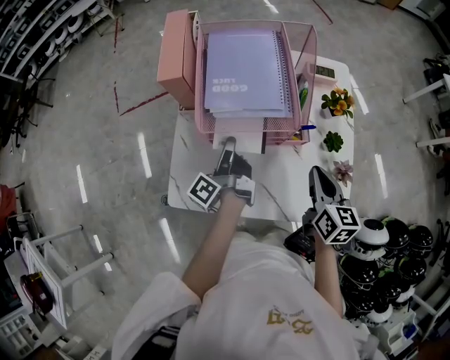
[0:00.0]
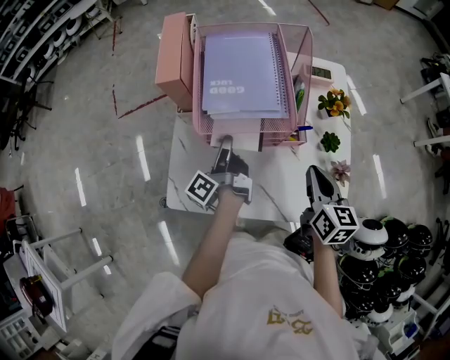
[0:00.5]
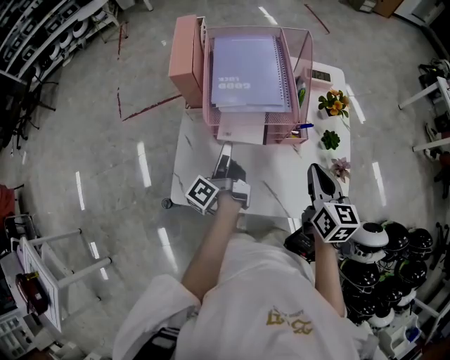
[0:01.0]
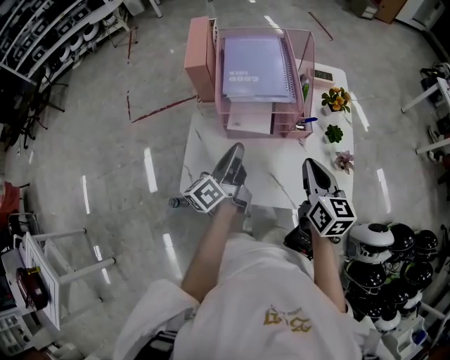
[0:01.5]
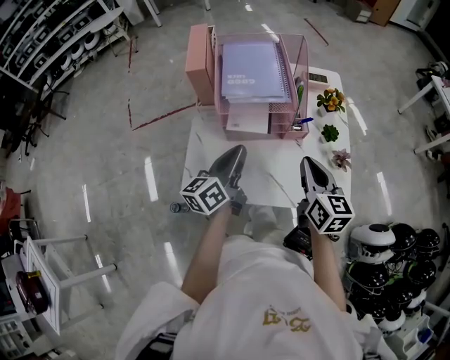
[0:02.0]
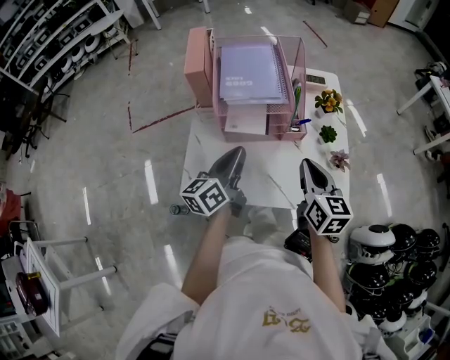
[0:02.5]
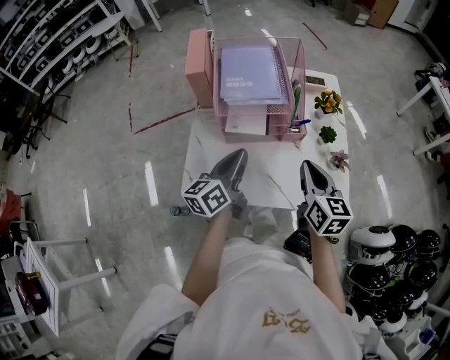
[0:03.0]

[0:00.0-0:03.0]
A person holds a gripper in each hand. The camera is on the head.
0:00.0 to 0:01.5: The right gripper moves roughly 10 cm.

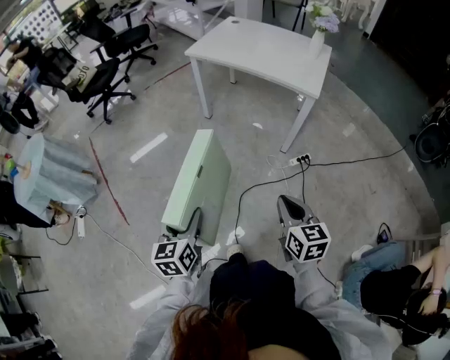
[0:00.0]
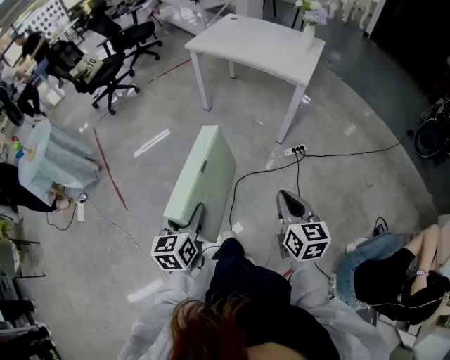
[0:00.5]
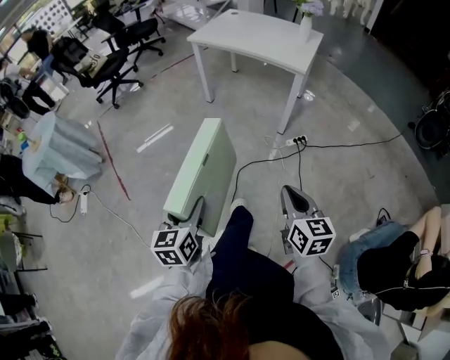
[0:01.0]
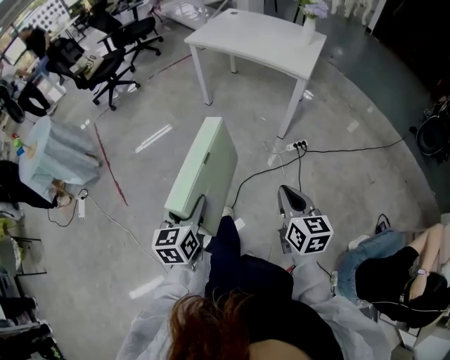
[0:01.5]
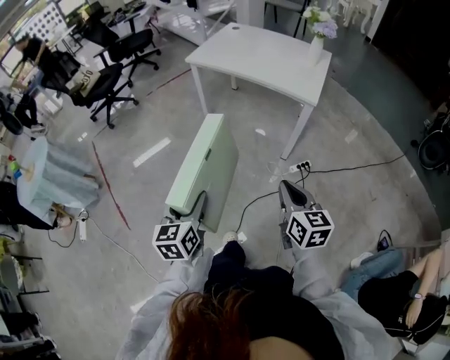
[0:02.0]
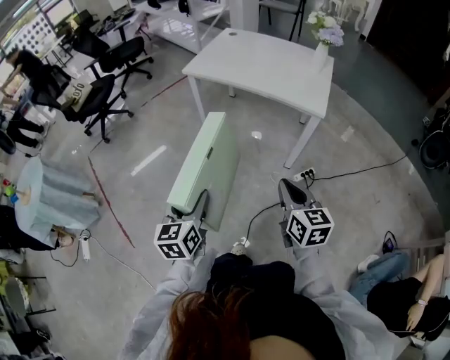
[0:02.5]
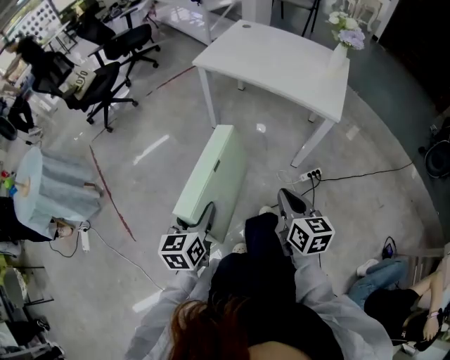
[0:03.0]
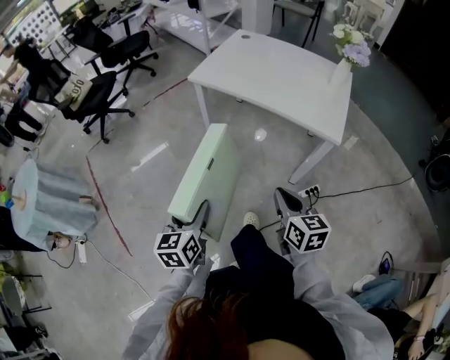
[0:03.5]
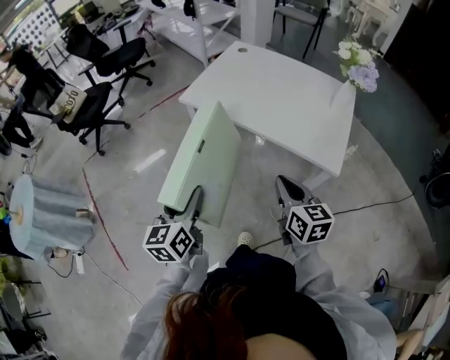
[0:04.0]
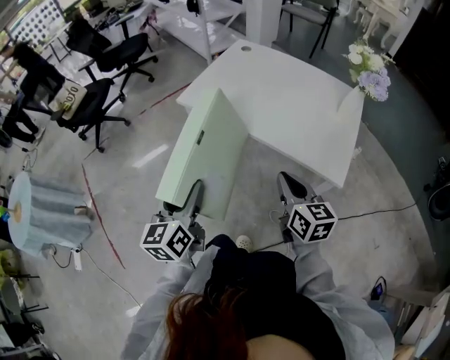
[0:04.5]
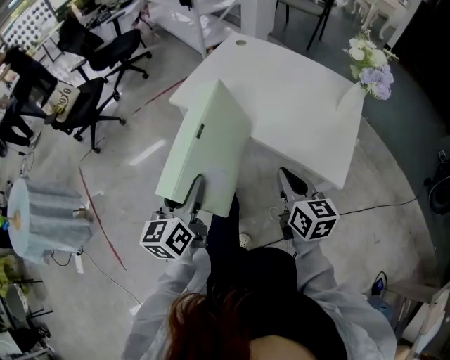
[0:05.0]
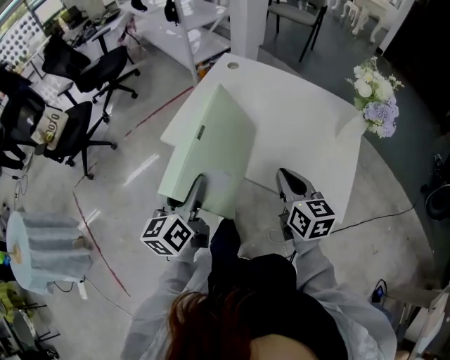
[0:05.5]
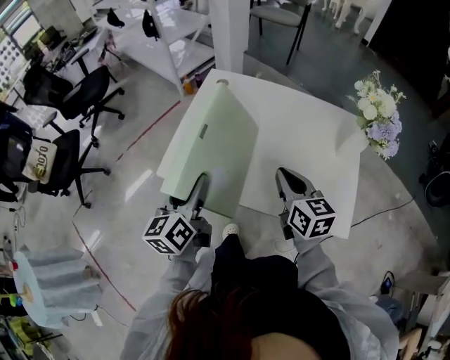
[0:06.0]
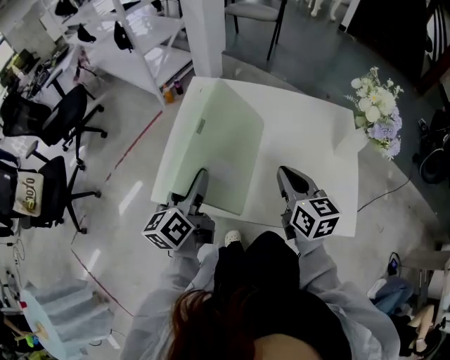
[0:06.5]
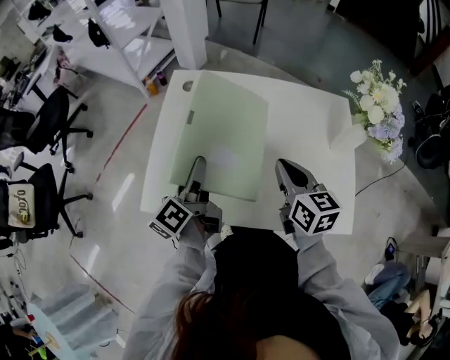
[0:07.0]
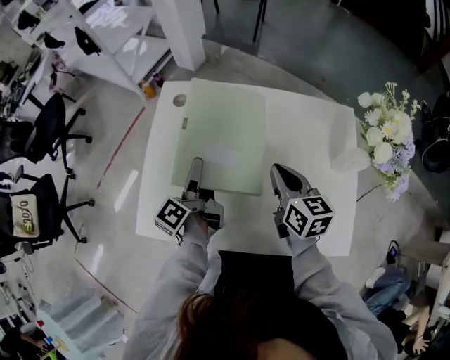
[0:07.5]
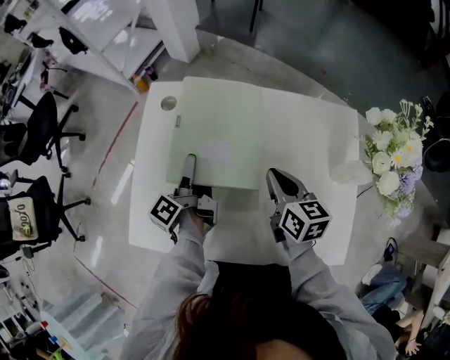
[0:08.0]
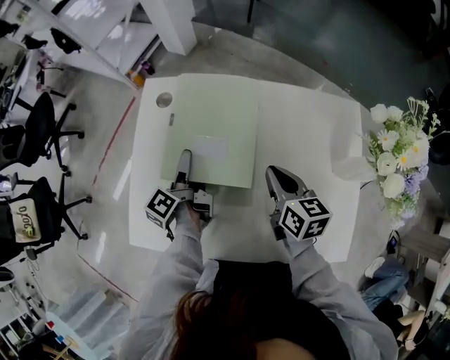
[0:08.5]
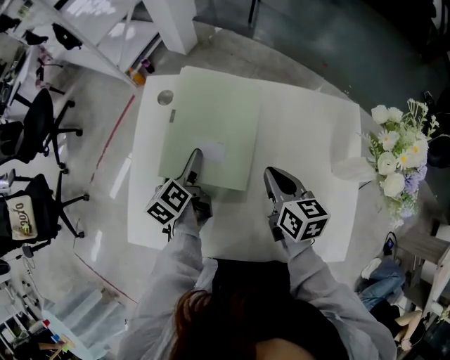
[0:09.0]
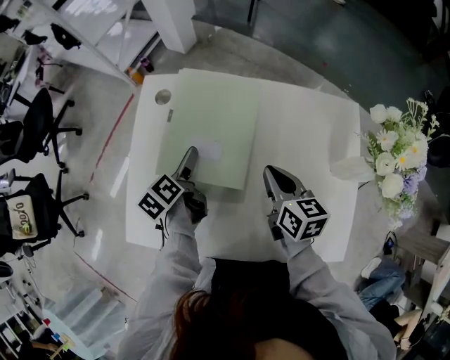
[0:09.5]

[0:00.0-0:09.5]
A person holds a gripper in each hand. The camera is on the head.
0:00.0 to 0:02.0: The right gripper reaches roughly 20 cm backward, then returns. The left gripper moves some 15 cm backward and comes back.
0:02.0 to 0:04.0: The pair of grippers is taken forward, roughly 40 cm.
0:04.0 to 0:05.5: The grippers both shift forward by approximately 25 cm.
0:05.5 to 0:07.5: Both grippers move forward, roughly 35 cm. The left gripper twists roughly 40 degrees counterclockwise, seen from behind.
0:07.5 to 0:09.5: The right gripper goes about 5 cm downward, while the left gripper heads downward and forward, covering roughly 10 cm, tilts its fingers approximately 30 degrees downward, and opens.

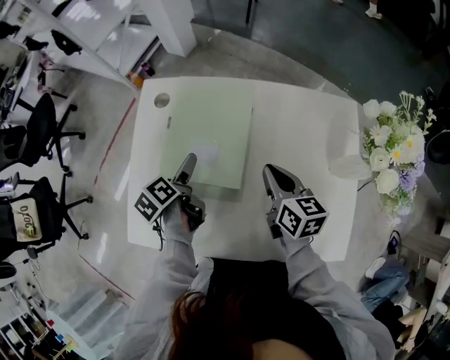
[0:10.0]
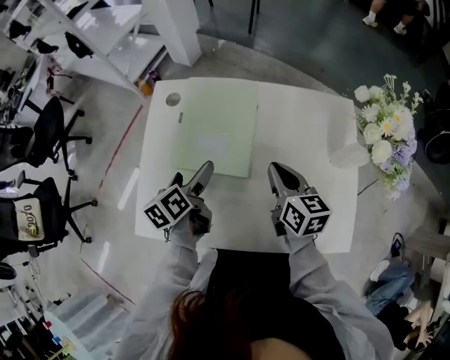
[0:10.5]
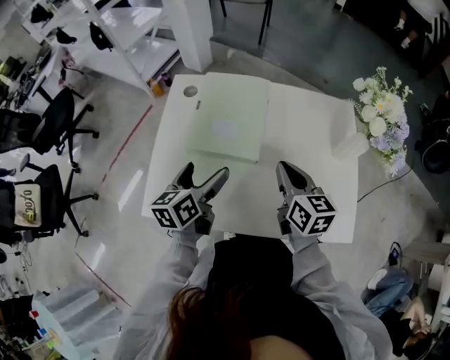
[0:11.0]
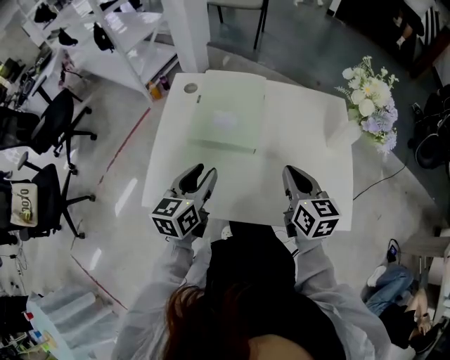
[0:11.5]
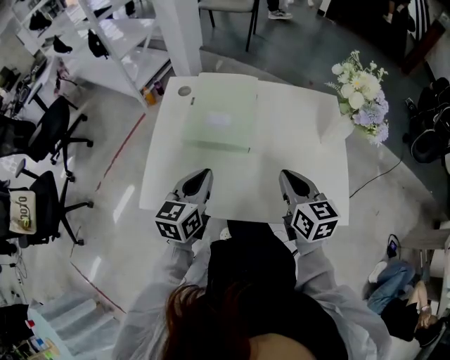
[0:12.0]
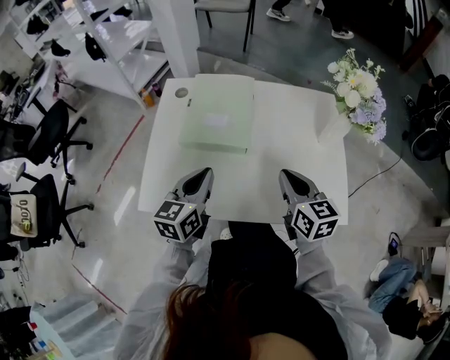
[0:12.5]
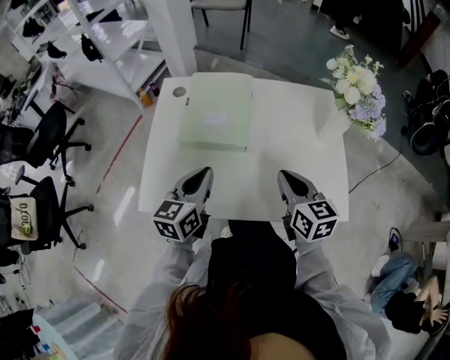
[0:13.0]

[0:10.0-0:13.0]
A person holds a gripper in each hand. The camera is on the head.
0:10.0 to 0:11.5: Both grippers move backward and upward, approximately 20 cm. The left gripper twists approximately 40 degrees clockwise, seen from behind, and closes.
0:11.5 to 0:13.0: There are only small adjustments of the grippers.

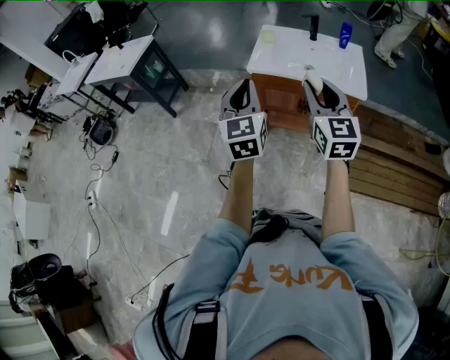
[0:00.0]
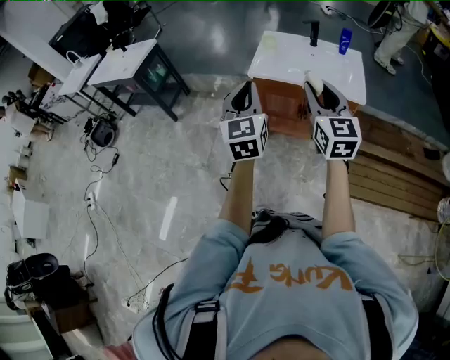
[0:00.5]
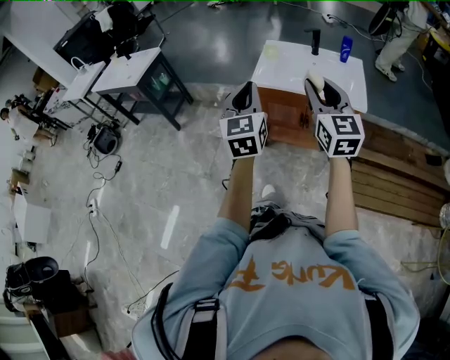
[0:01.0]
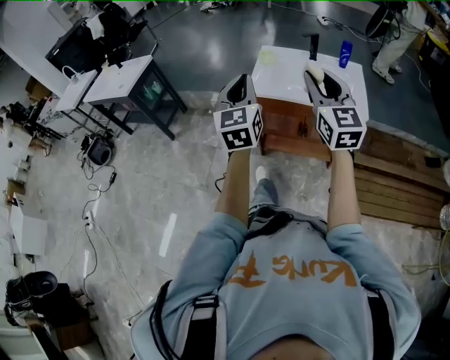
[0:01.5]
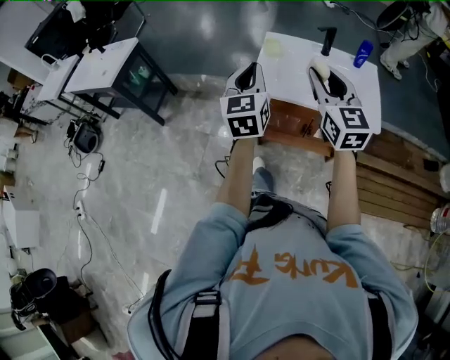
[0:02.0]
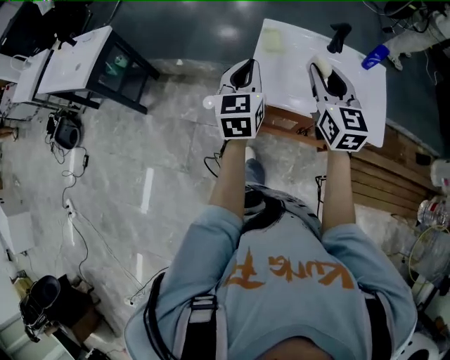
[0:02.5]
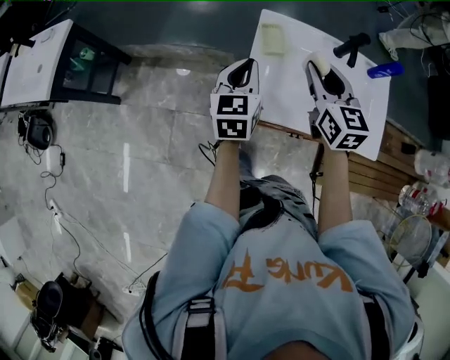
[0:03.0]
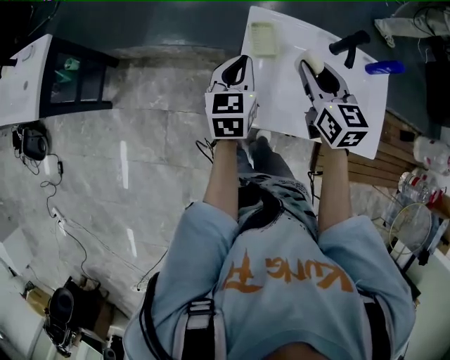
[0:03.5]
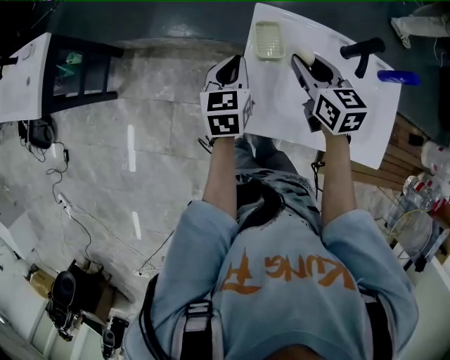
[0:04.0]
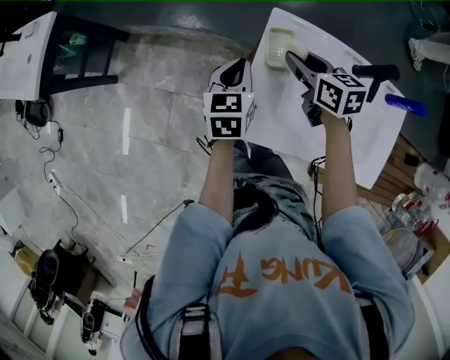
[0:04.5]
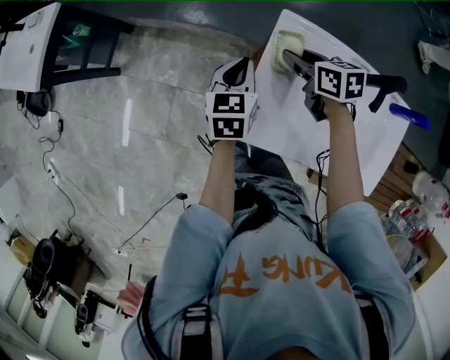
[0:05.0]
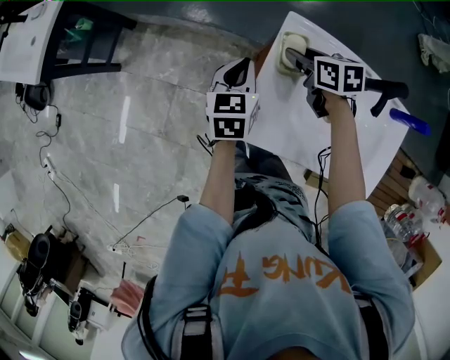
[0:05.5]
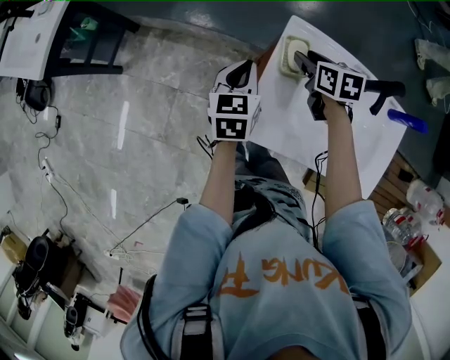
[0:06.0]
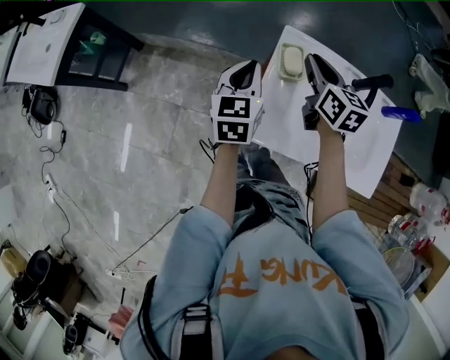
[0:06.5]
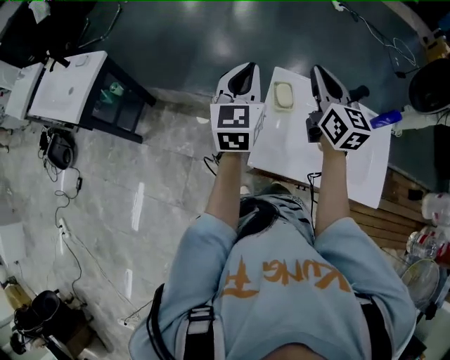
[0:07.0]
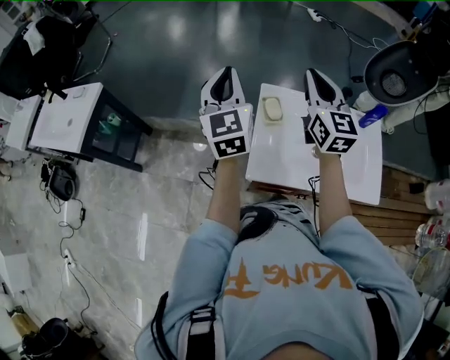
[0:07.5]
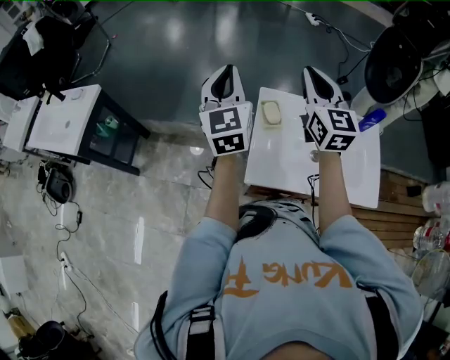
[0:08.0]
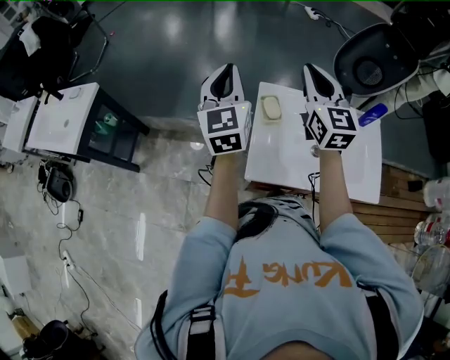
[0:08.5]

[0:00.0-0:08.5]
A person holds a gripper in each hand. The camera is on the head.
0:00.0 to 0:02.0: The grippers both shift forward by about 25 cm.
0:02.0 to 0:04.0: The grippers both shift forward and downward by roughly 40 cm. The right gripper turns by some 40 degrees. Meanwhile the left gripper changes its angle by about 30 degrees.
0:04.0 to 0:06.5: The left gripper moves about 5 cm. Meanwhile the right gripper goes downward and returns, approximately 10 cm each way.
0:06.5 to 0:08.5: Both grippers travel together upward, about 20 cm. The right gripper swivels some 40 degrees. The left gripper swivels about 30 degrees.

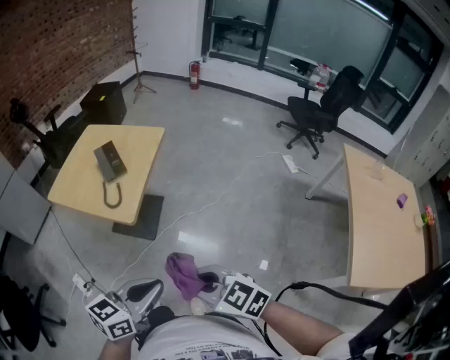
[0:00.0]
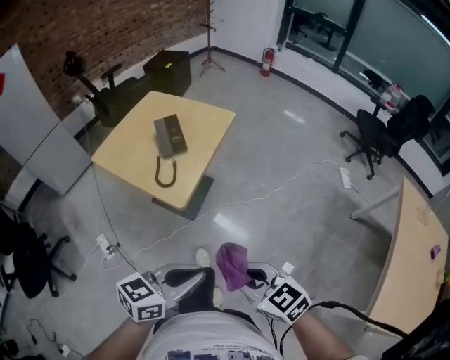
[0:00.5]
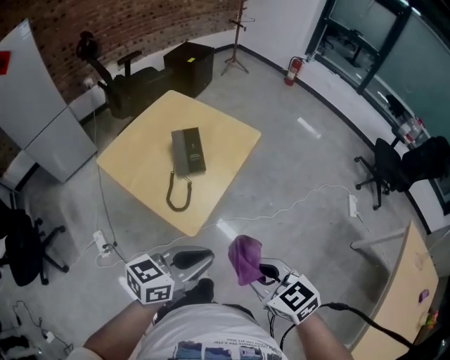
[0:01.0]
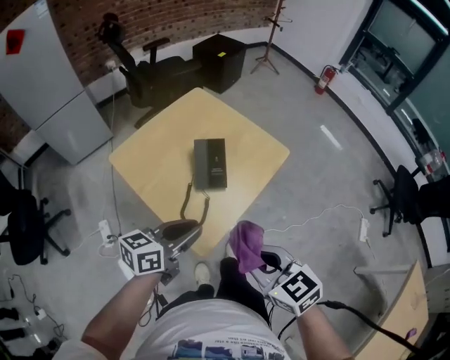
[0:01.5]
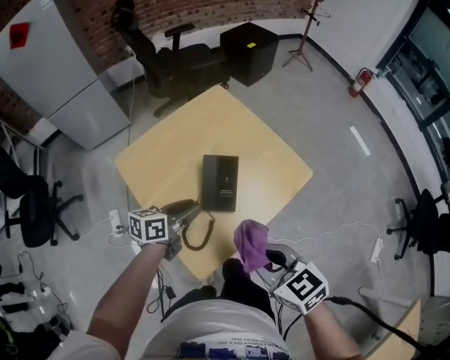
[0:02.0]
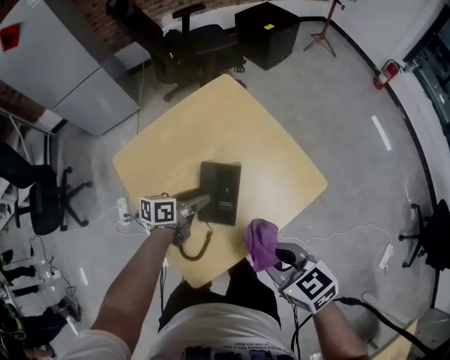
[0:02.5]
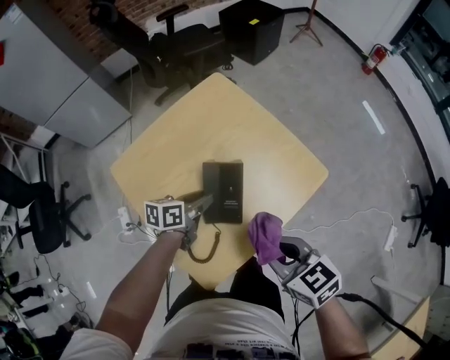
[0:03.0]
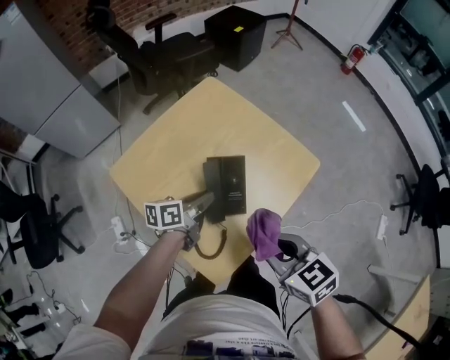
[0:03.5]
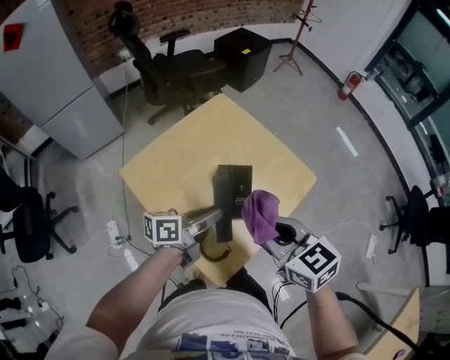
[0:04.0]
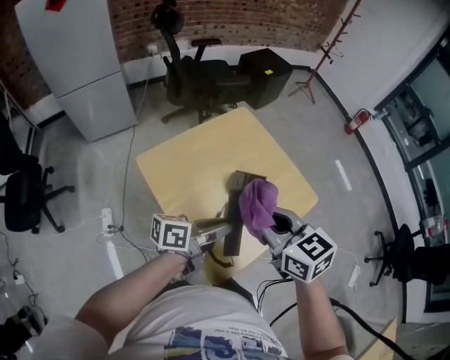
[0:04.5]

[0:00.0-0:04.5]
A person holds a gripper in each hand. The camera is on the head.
0:00.0 to 0:02.0: The left gripper ends up some 50 cm from where it was, changes its angle by about 40 degrees, and opens. Meanwhile the right gripper moves some 40 cm.
0:02.0 to 0:04.5: The left gripper shifts about 10 cm upward, and swivels about 30 degrees. The right gripper goes roughly 15 cm forward, to the left and upward.
